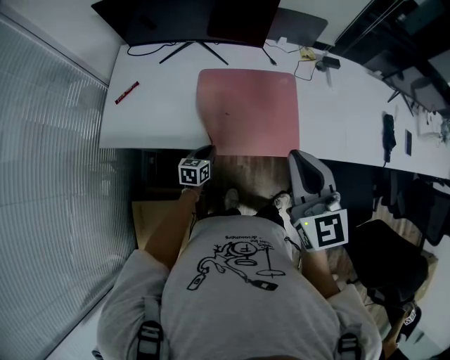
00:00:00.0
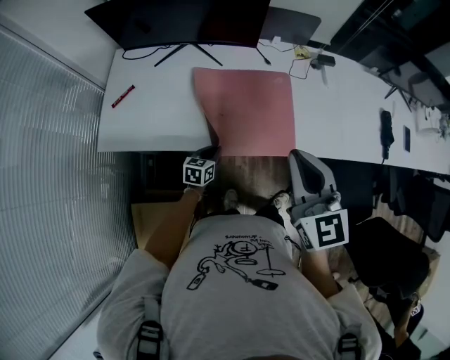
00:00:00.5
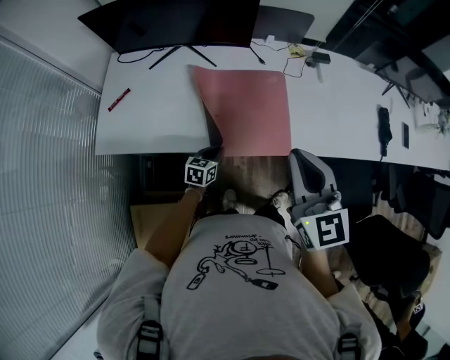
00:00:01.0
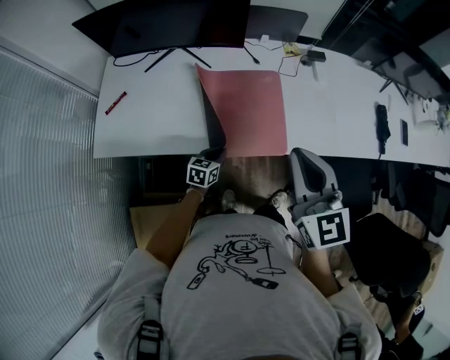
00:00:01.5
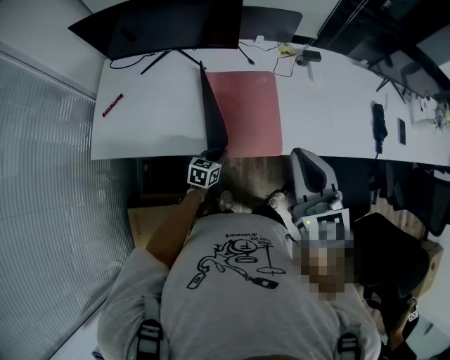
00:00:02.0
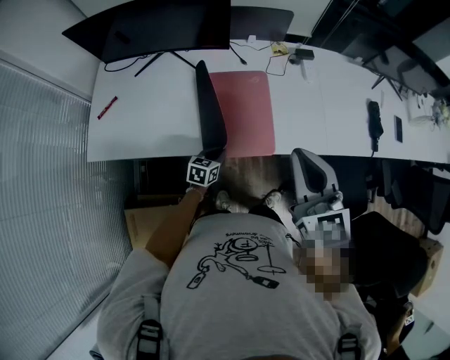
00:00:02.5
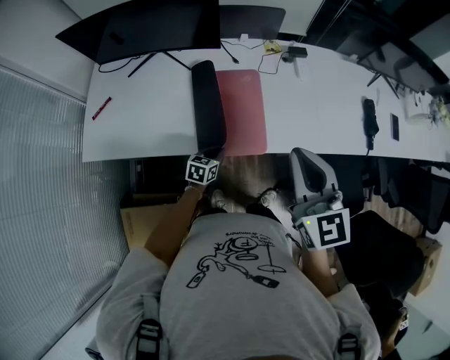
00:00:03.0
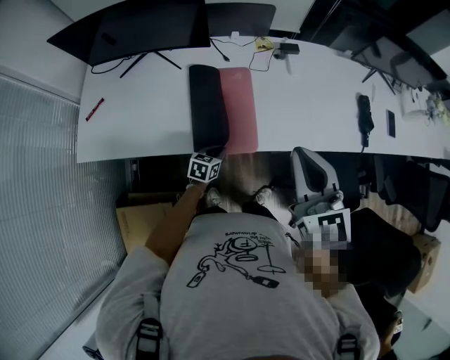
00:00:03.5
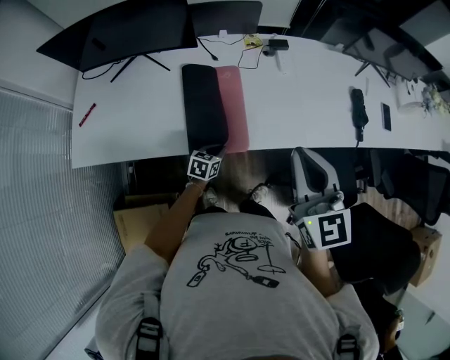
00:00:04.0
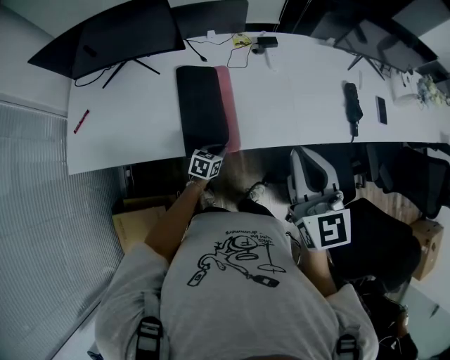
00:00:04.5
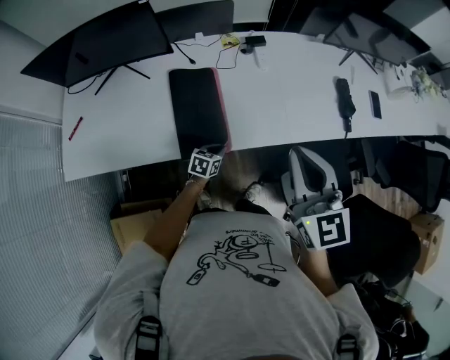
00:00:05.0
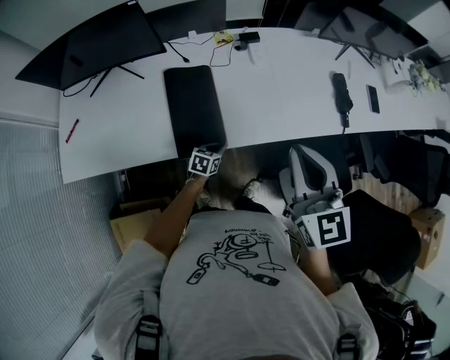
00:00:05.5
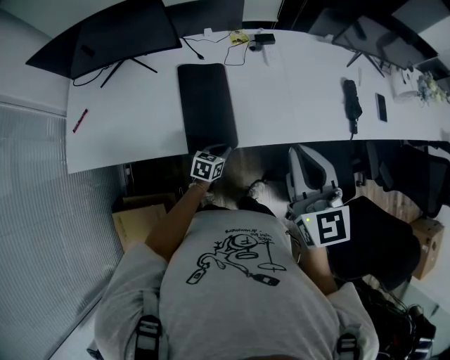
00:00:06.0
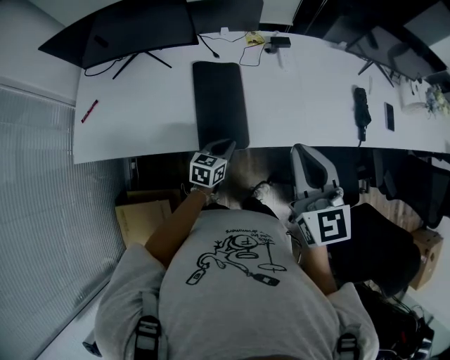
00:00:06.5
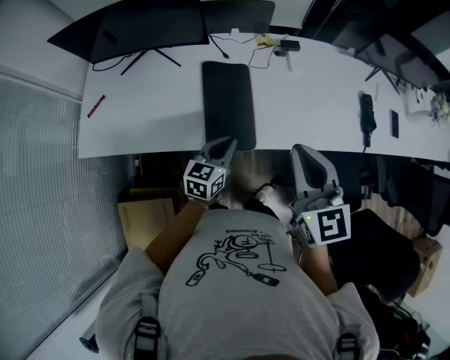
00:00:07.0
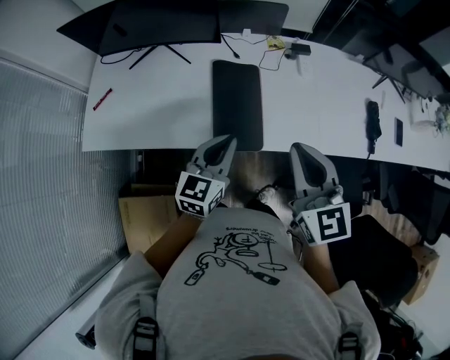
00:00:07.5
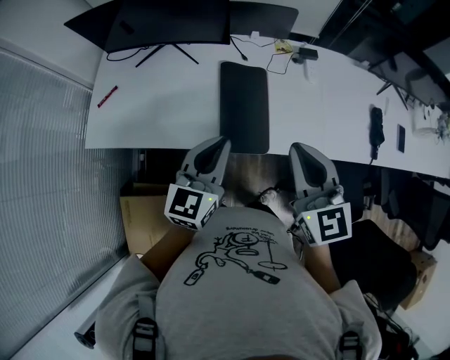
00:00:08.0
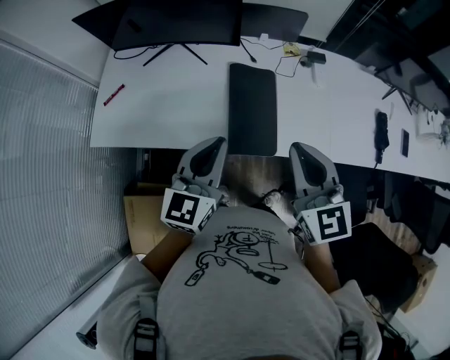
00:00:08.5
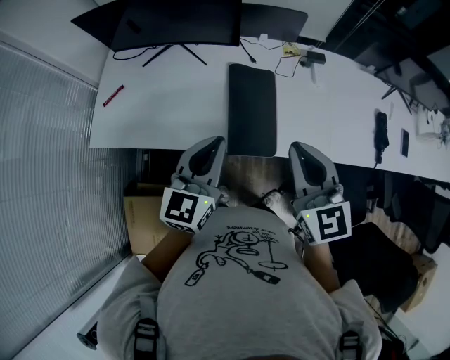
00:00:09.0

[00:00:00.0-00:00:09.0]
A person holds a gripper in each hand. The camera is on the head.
00:00:00.0 to 00:00:02.0: The two grippers go roughly 10 cm to the right.
00:00:02.0 to 00:00:04.5: Both grippers travel together to the right, roughly 20 cm.
00:00:04.5 to 00:00:07.0: The left gripper shifts some 20 cm upward, and rotates some 30 degrees.
00:00:07.0 to 00:00:09.0: The left gripper shifts approximately 20 cm upward and to the left, and swivels roughly 20 degrees; the right gripper shifts about 10 cm to the left.

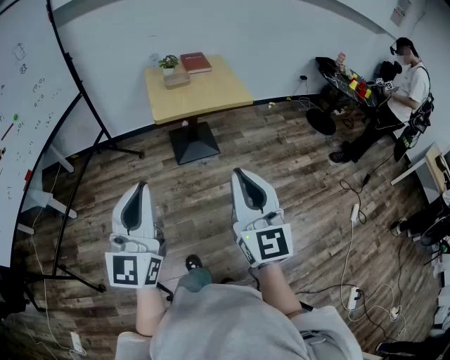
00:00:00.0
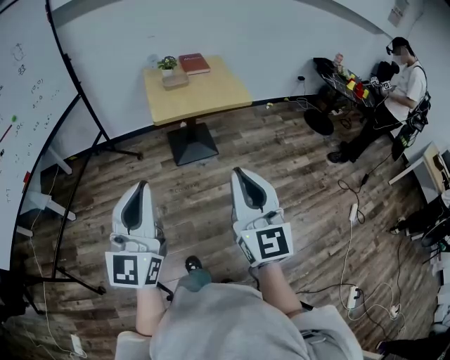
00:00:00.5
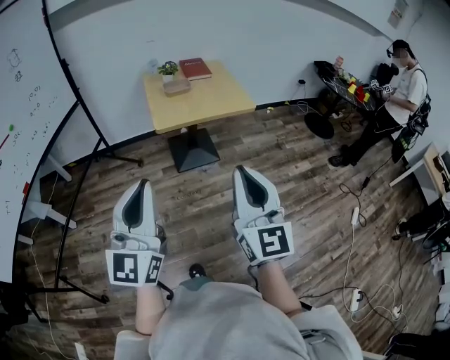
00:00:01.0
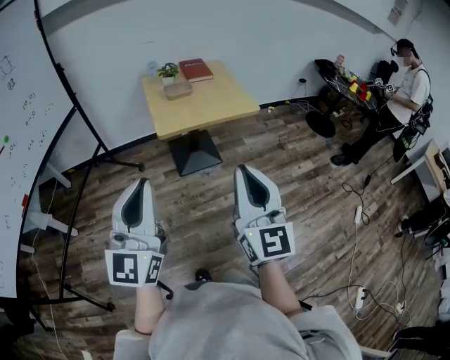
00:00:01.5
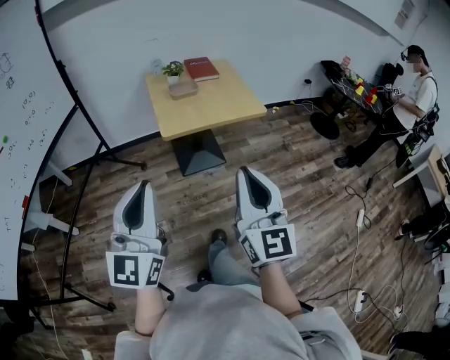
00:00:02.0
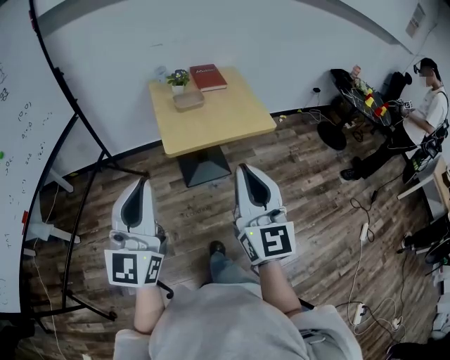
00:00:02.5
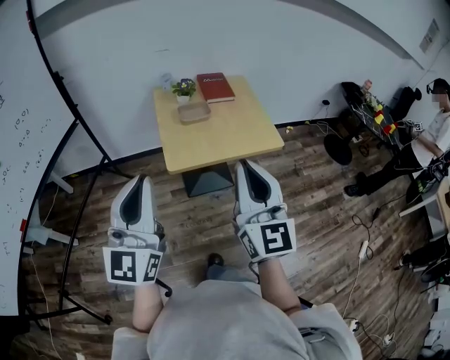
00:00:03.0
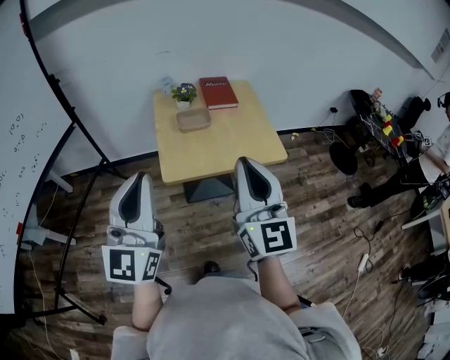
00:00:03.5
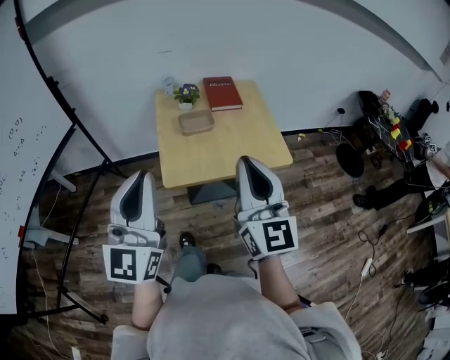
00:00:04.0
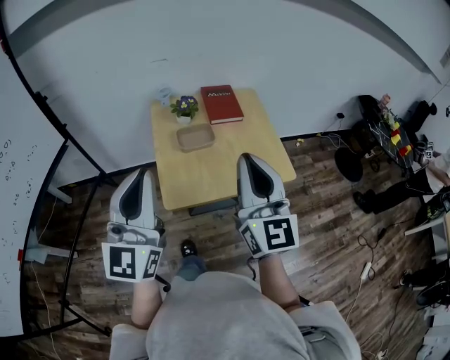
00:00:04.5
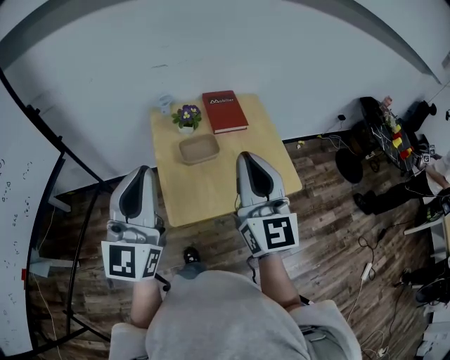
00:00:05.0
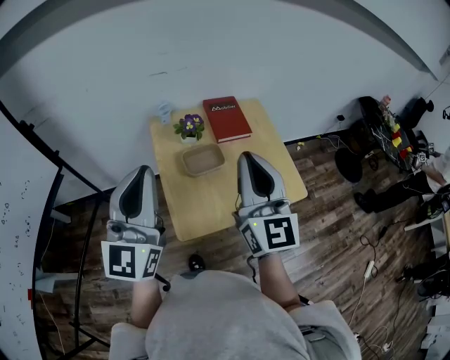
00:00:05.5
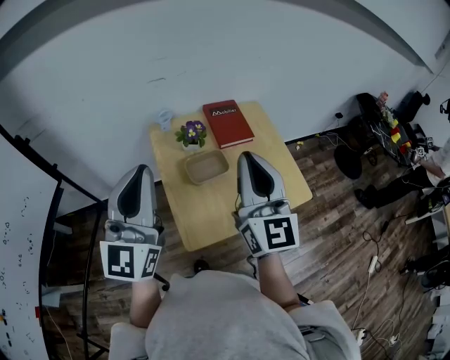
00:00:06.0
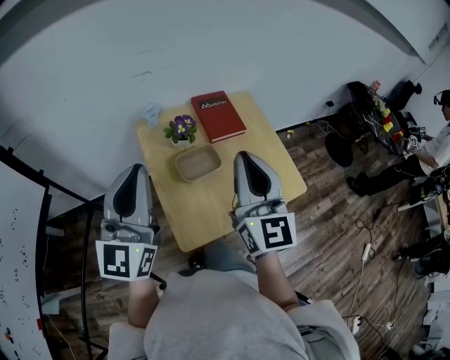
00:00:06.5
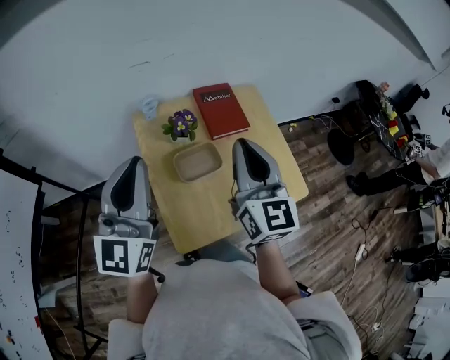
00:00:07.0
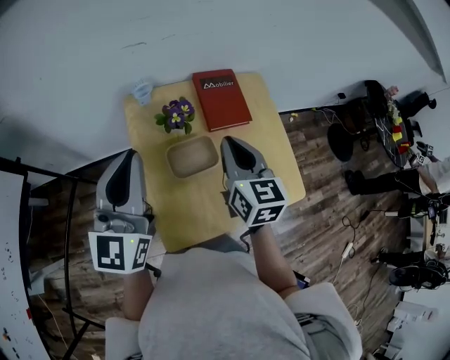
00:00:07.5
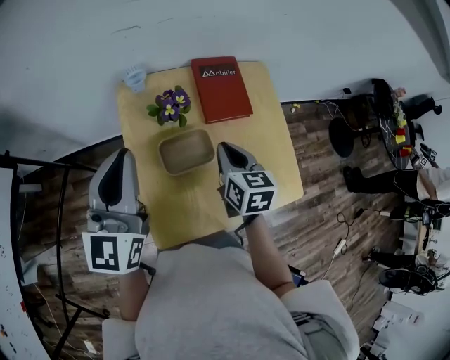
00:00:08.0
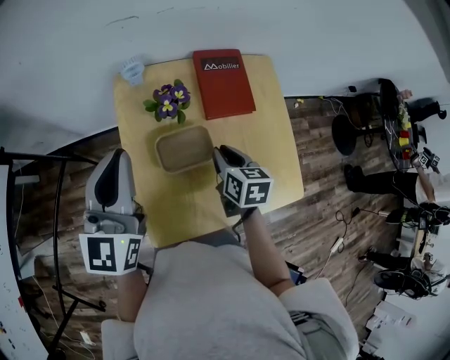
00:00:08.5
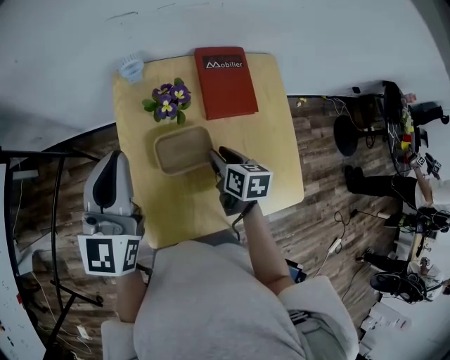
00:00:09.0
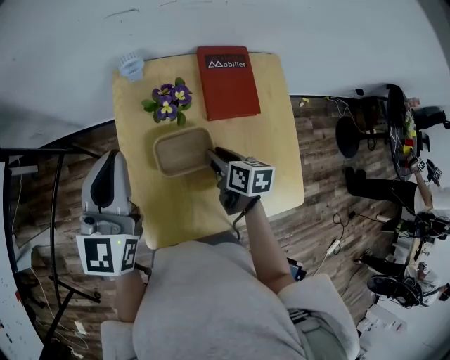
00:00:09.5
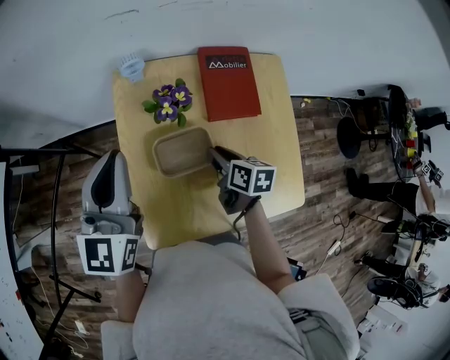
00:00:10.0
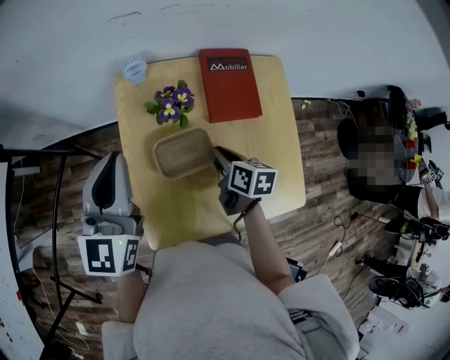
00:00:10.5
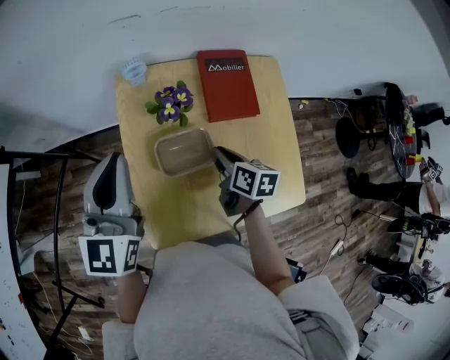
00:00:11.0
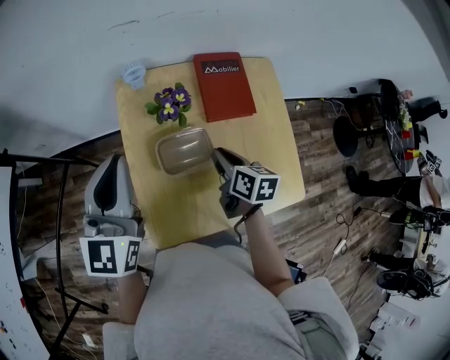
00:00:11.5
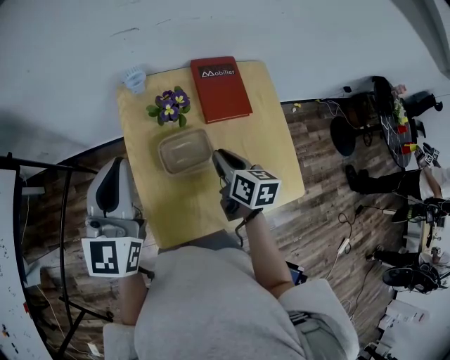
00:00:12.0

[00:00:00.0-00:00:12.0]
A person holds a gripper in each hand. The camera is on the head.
00:00:00.0 to 00:00:02.0: Both grippers move forward and to the left, approximately 15 cm.
00:00:02.0 to 00:00:04.0: The grippers both shift forward by about 30 cm.
00:00:04.0 to 00:00:06.0: Both grippers travel together forward, roughly 25 cm.
00:00:06.0 to 00:00:08.0: The right gripper shifts roughly 30 cm downward and forward, and angles its fingers downward, by some 50 degrees. The left gripper goes some 20 cm forward and downward.
00:00:08.0 to 00:00:10.0: The right gripper goes roughly 10 cm downward, and turns by about 30 degrees. Meanwhile the left gripper ends up approximately 5 cm from where it was.
00:00:10.0 to 00:00:12.0: The left gripper shifts by approximately 5 cm; the right gripper heads upward, covering some 10 cm.

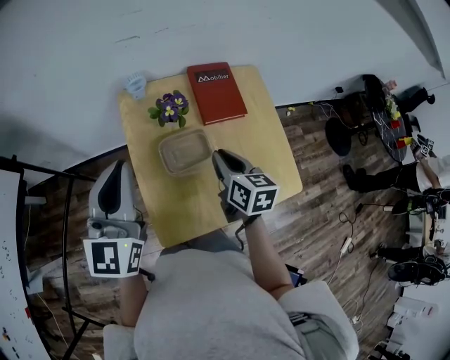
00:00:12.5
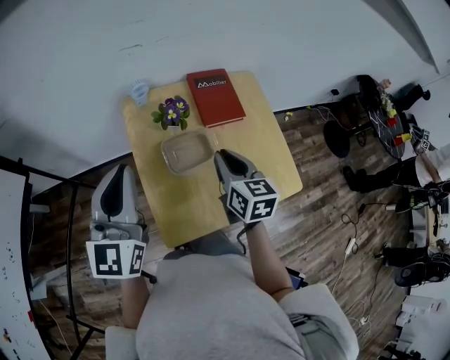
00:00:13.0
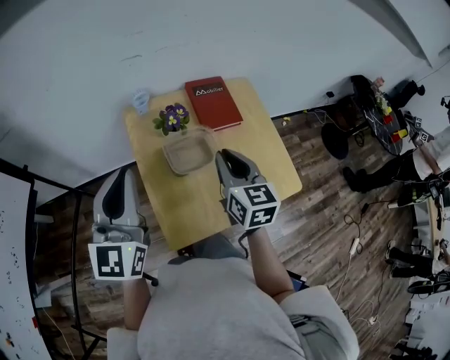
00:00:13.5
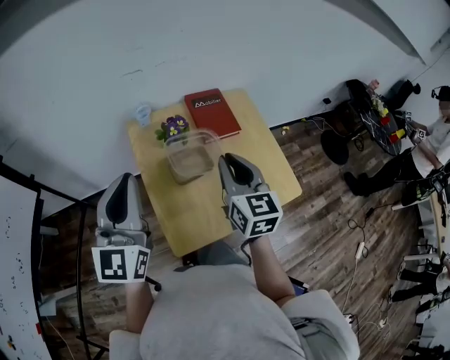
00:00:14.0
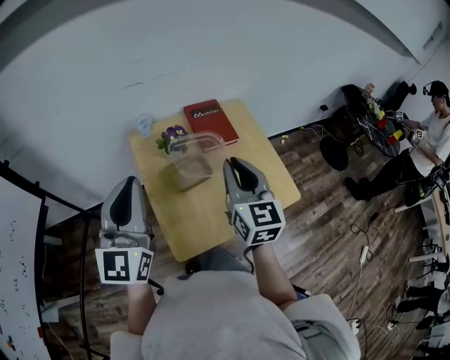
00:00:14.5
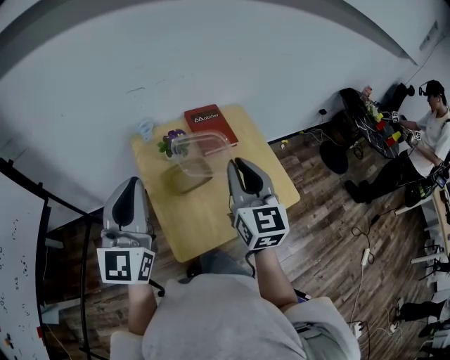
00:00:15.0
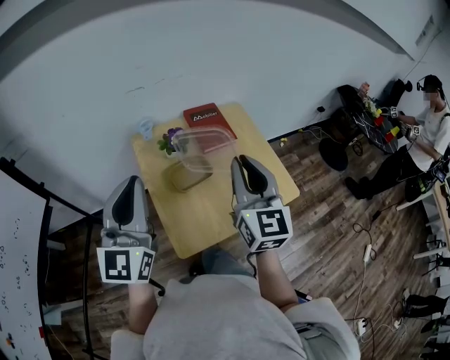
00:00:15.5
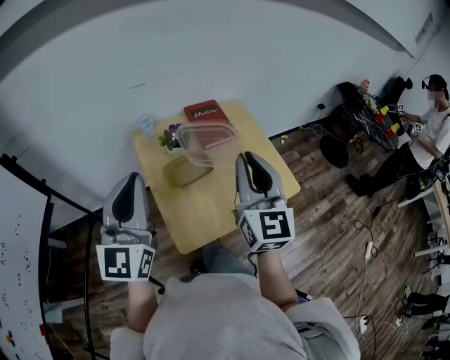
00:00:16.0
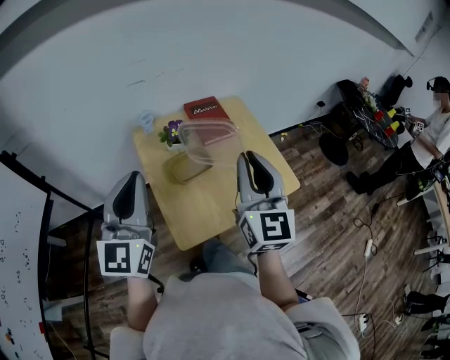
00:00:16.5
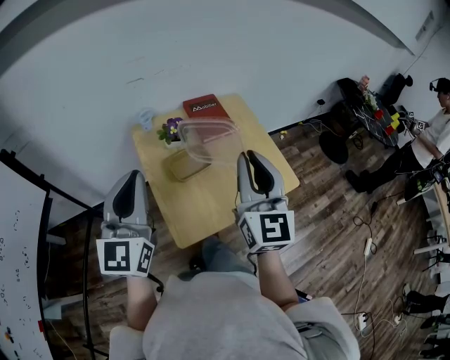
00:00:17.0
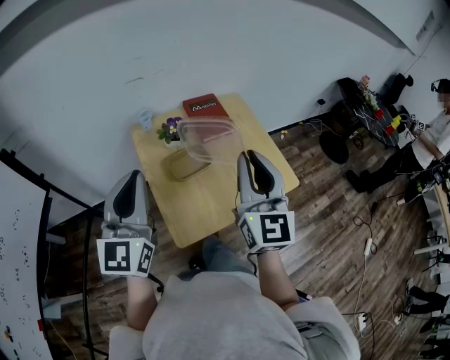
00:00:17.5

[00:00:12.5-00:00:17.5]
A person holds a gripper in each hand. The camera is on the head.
00:00:12.5 to 00:00:15.0: The left gripper shifts about 10 cm upward and backward. Meanwhile the right gripper travels upward and backward by approximately 20 cm, and turns by about 40 degrees.
00:00:15.0 to 00:00:17.5: The right gripper moves backward, some 5 cm.

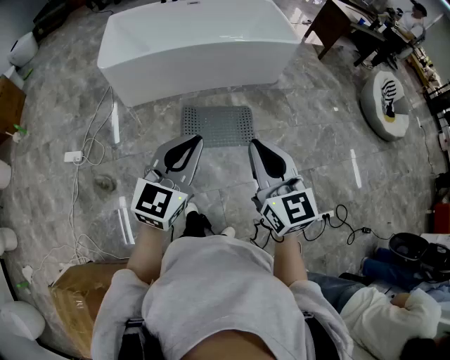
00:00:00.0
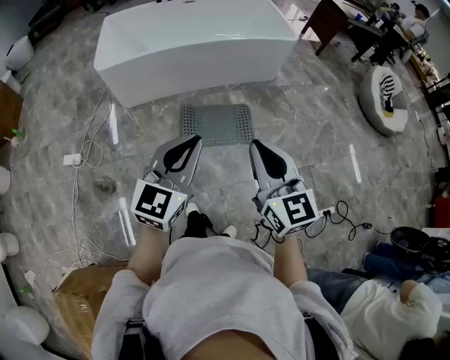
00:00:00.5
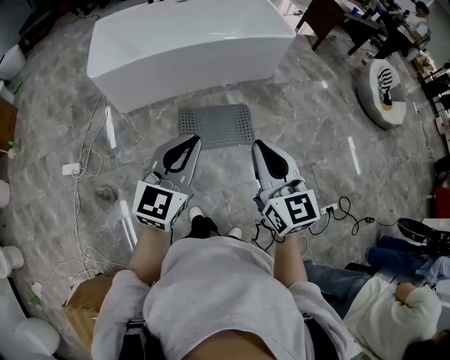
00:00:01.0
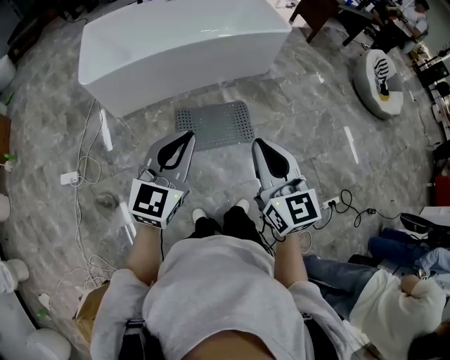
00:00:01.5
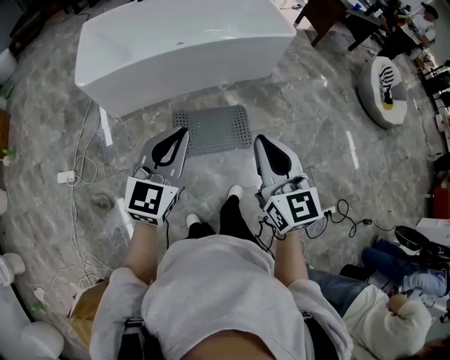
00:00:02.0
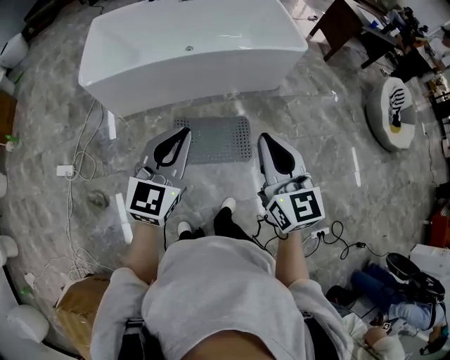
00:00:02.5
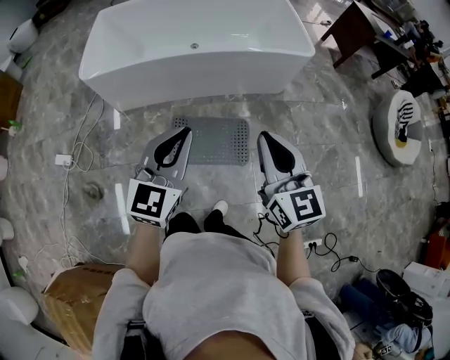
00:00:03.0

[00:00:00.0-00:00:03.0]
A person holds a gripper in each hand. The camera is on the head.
00:00:00.0 to 00:00:01.5: The left gripper goes approximately 10 cm forward and to the left, while the right gripper moves forward, approximately 10 cm.
00:00:01.5 to 00:00:03.0: Both grippers move forward and to the right, approximately 25 cm.
